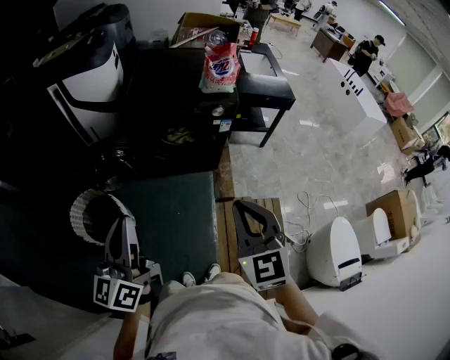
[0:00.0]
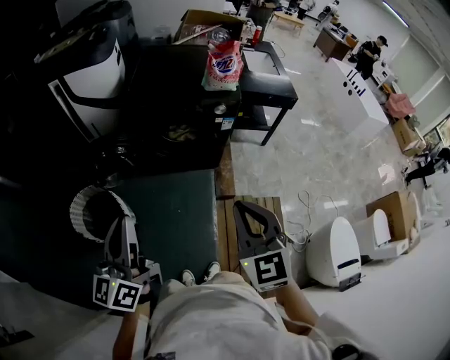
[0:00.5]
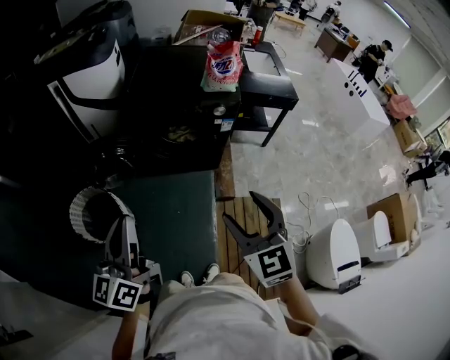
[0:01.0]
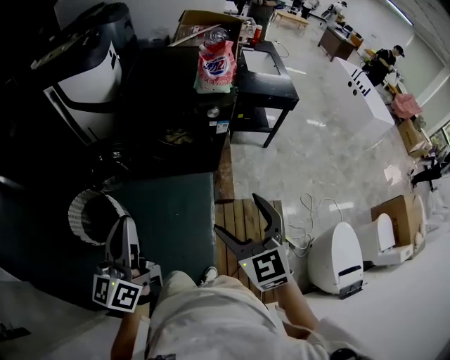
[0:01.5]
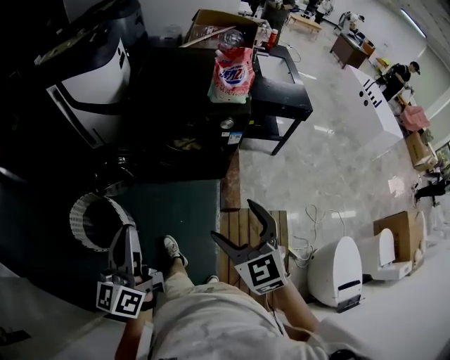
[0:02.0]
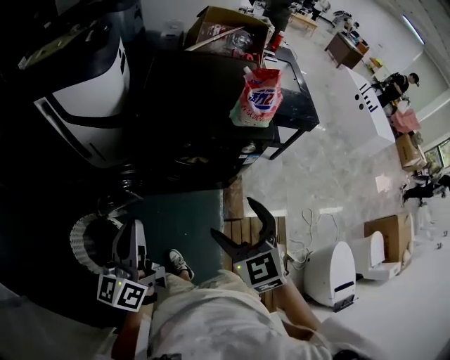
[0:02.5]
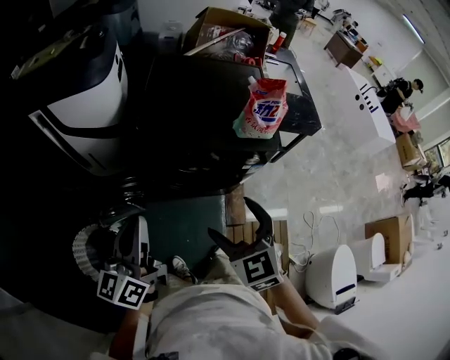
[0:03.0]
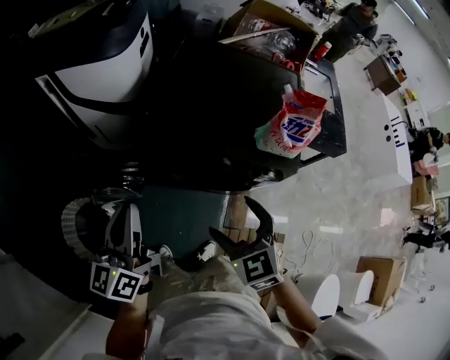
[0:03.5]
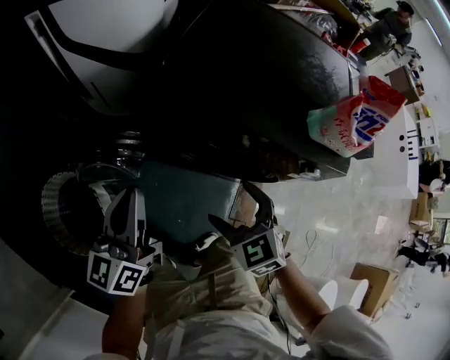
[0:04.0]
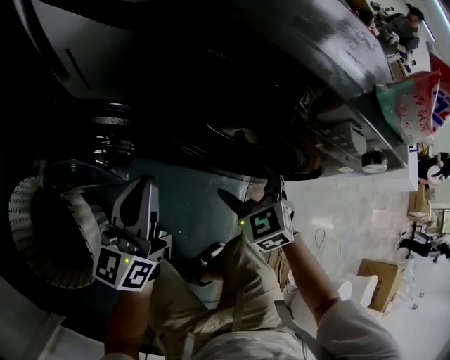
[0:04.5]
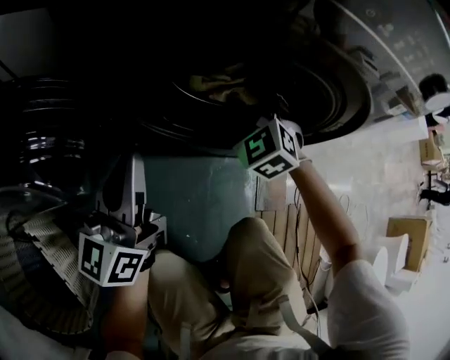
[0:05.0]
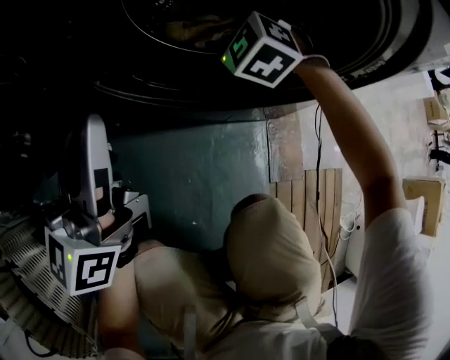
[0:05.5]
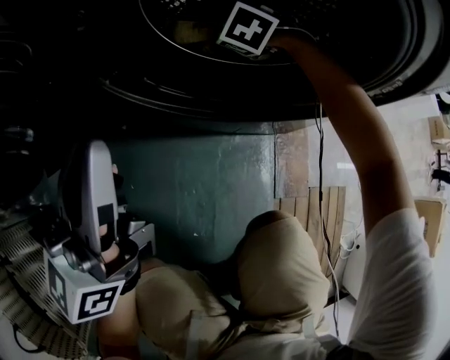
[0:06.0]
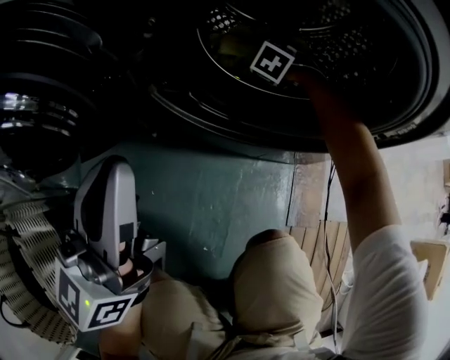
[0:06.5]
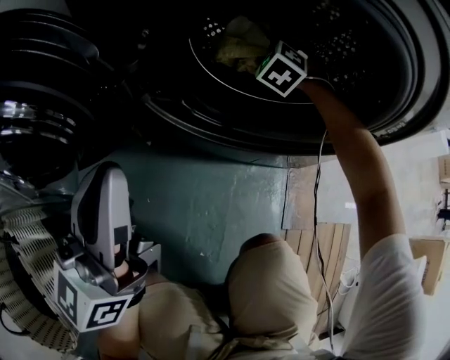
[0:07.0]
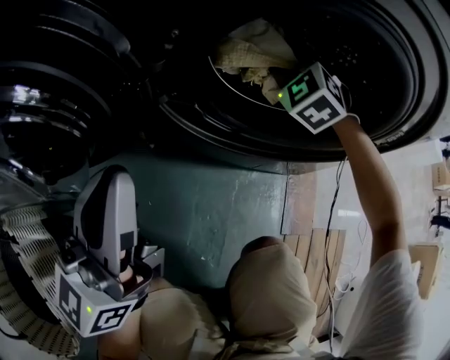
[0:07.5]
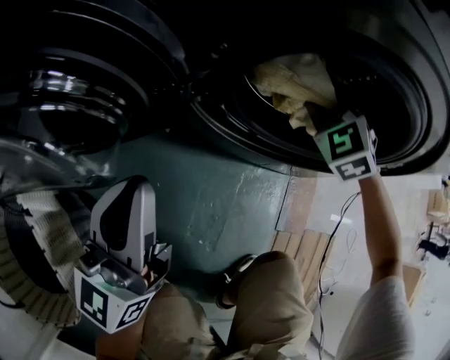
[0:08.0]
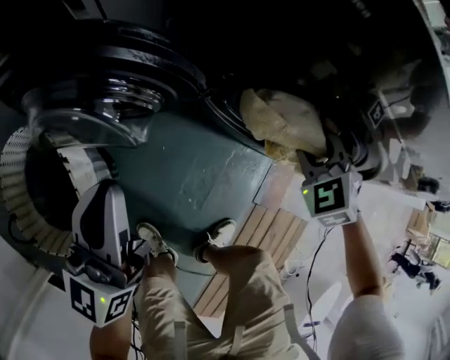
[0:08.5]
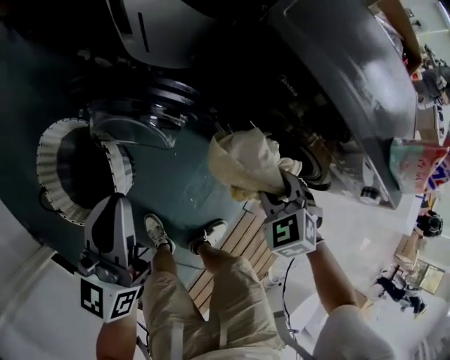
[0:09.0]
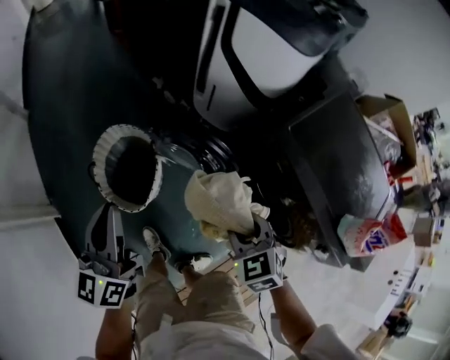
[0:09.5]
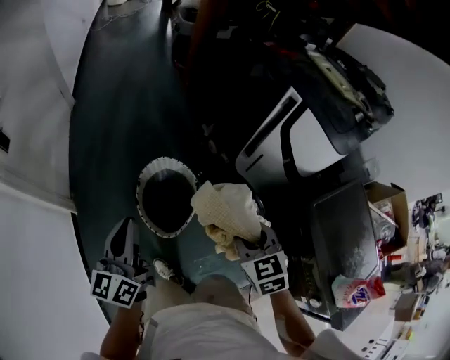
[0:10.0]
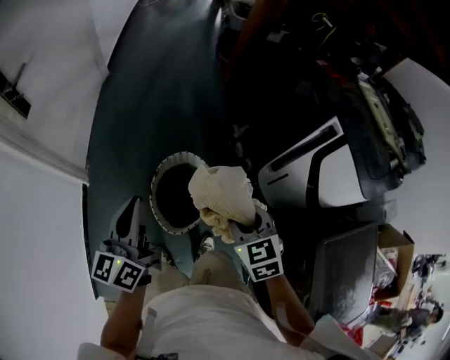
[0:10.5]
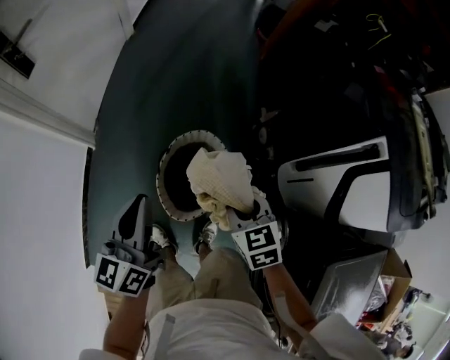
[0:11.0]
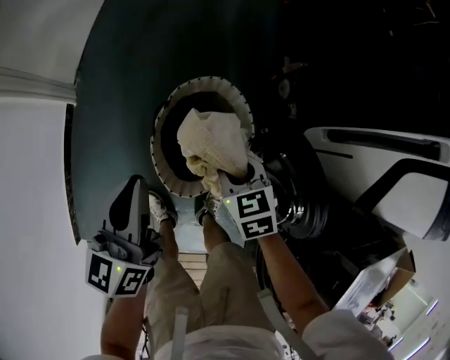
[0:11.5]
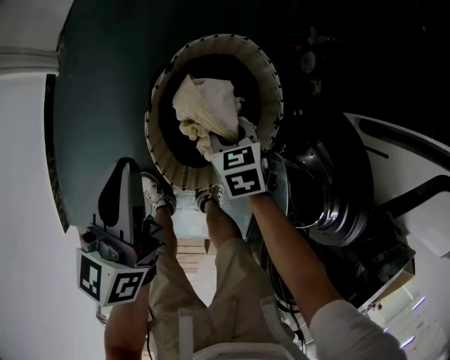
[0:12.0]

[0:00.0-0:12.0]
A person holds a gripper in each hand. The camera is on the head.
0:00.0 to 0:02.0: The left gripper moves forward, about 10 cm. The right gripper is displaced forward and downward by some 10 cm, and opens.
0:02.0 to 0:04.0: Both grippers move forward and downward, approximately 40 cm. The right gripper rotates about 30 degrees.
0:04.0 to 0:06.0: Both grippers travel together downward, roughly 40 cm. The left gripper swivels roughly 30 degrees, while the right gripper swivels about 30 degrees.
0:06.0 to 0:08.0: The right gripper goes roughly 15 cm upward and backward, rotates roughly 20 degrees, and closes its fingers; the left gripper is displaced to the left and backward by about 10 cm.
0:08.0 to 0:10.0: The two grippers travel together, some 50 cm. Both grippers move upward, approximately 50 cm. The left gripper rotates approximately 70 degrees; the right gripper turns by some 50 degrees.
0:10.0 to 0:12.0: The two grippers go about 50 cm downward. The right gripper rotates approximately 30 degrees. Meanwhile the left gripper rotates about 30 degrees.

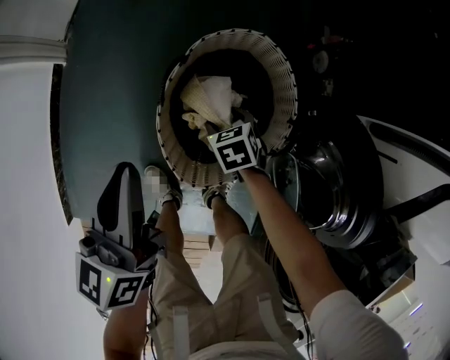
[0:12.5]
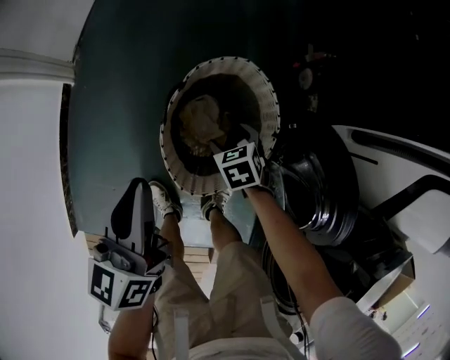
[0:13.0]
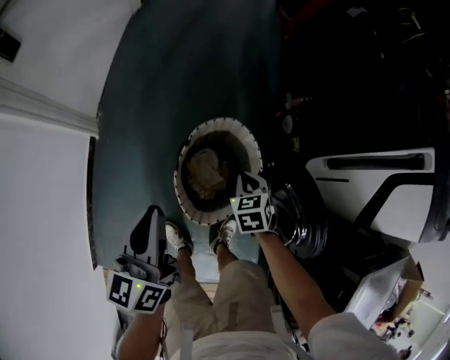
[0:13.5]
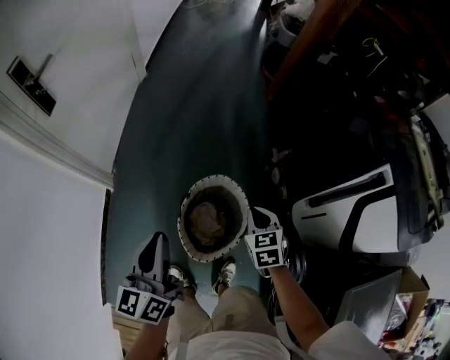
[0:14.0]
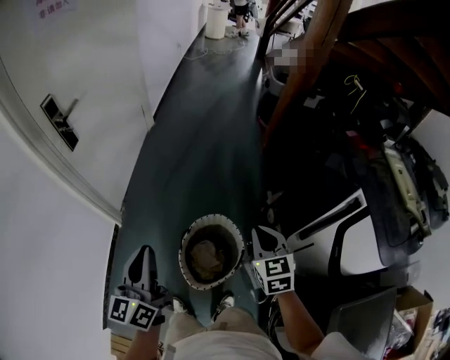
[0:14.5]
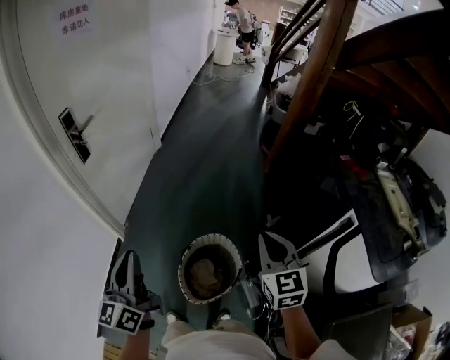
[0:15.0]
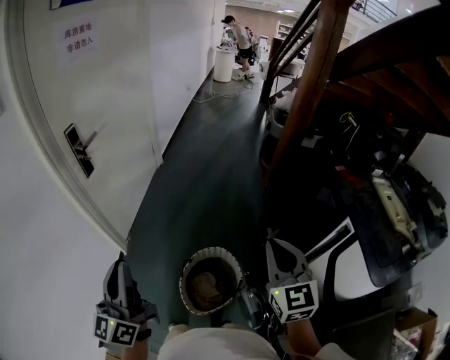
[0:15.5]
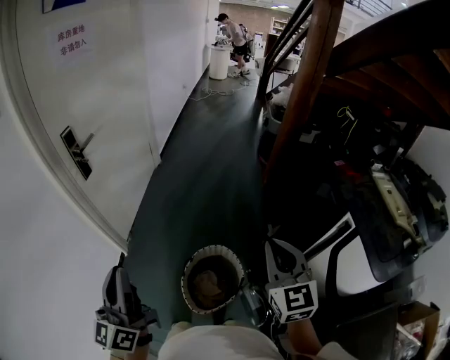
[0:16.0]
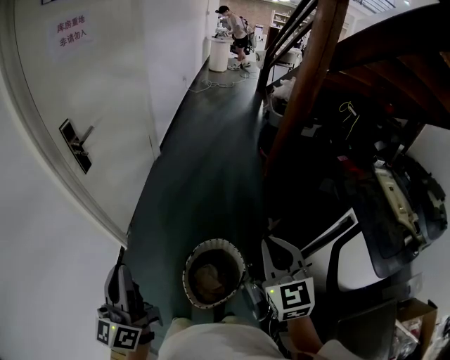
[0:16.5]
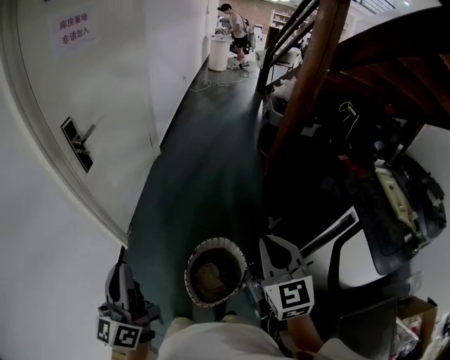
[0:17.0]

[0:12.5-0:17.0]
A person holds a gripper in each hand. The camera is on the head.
0:12.5 to 0:14.5: The grippers both shift upward by roughly 50 cm. The left gripper swivels some 20 degrees. Meanwhile the right gripper angles its fingers upward, by approximately 40 degrees, and closes up.
0:14.5 to 0:17.0: The left gripper is displaced upward, to the left and backward by about 15 cm. Meanwhile the right gripper heads upward, covering some 20 cm.

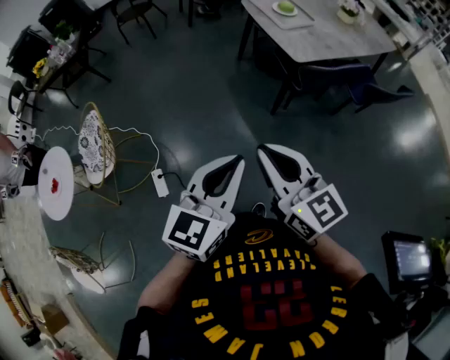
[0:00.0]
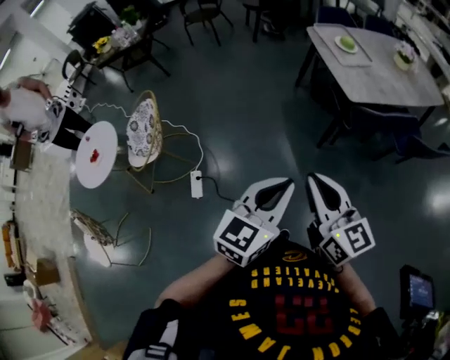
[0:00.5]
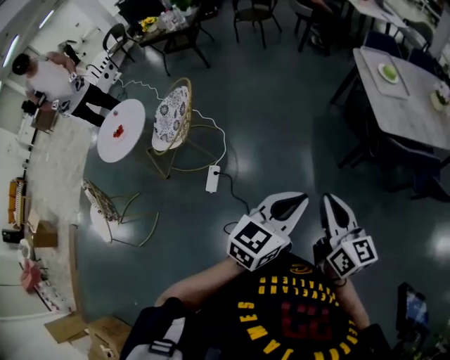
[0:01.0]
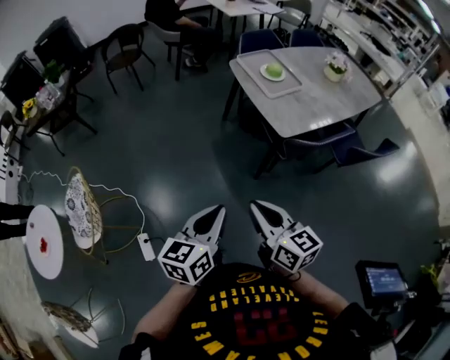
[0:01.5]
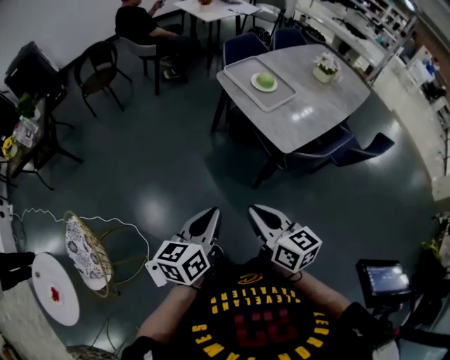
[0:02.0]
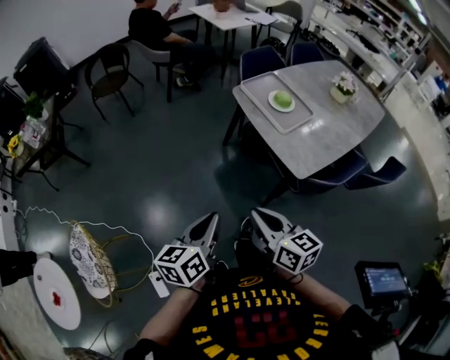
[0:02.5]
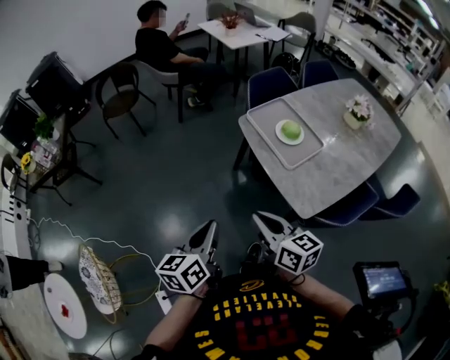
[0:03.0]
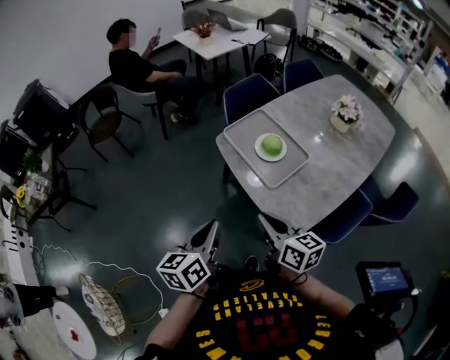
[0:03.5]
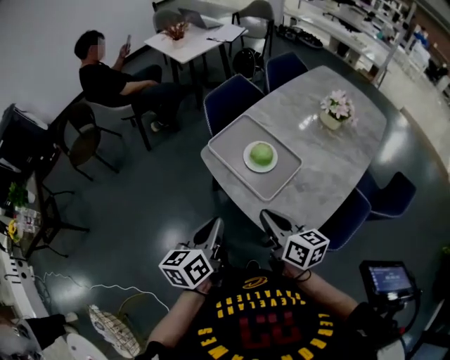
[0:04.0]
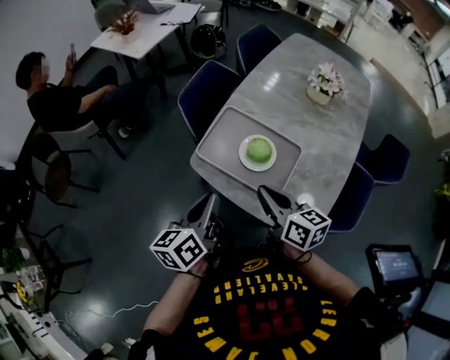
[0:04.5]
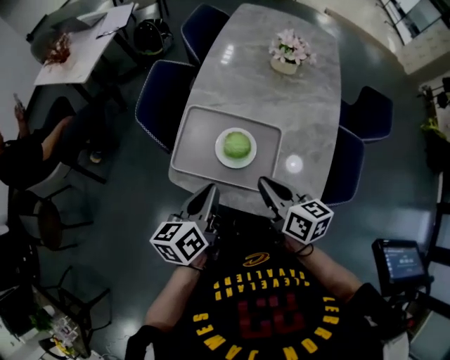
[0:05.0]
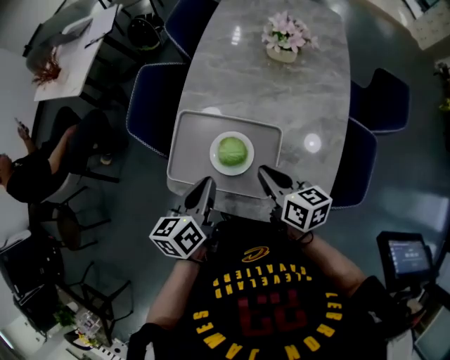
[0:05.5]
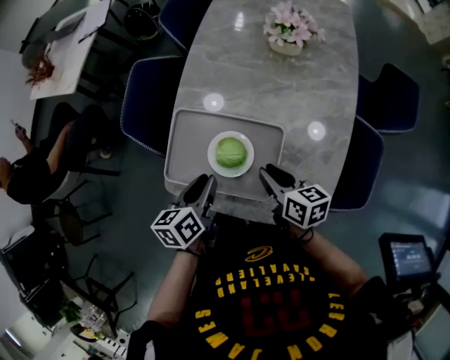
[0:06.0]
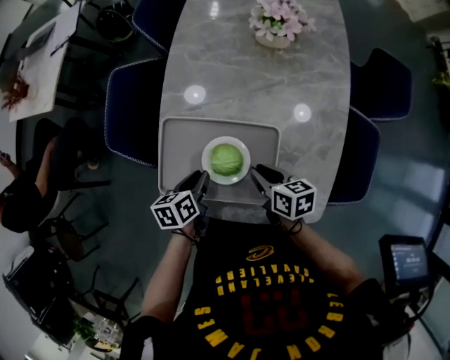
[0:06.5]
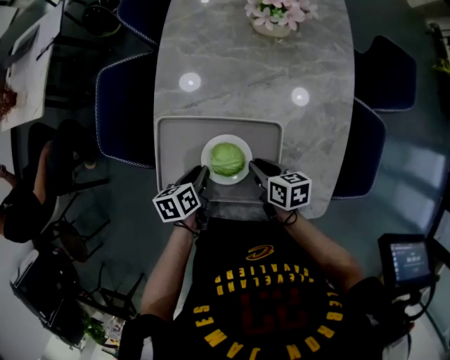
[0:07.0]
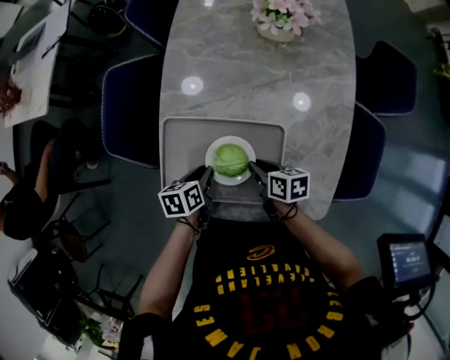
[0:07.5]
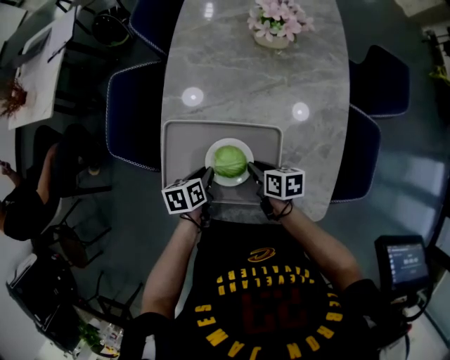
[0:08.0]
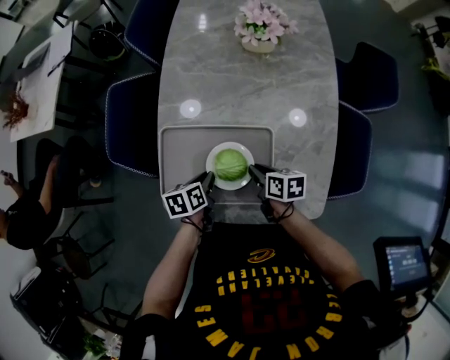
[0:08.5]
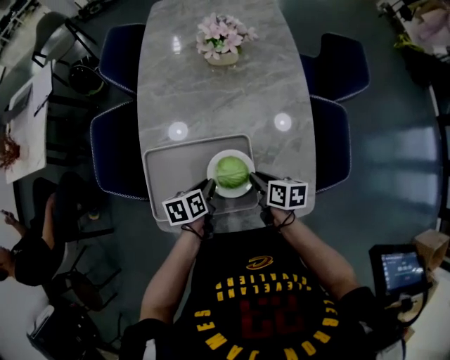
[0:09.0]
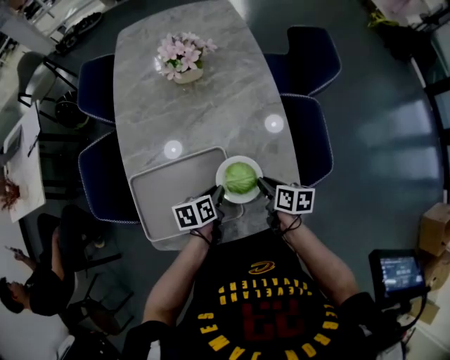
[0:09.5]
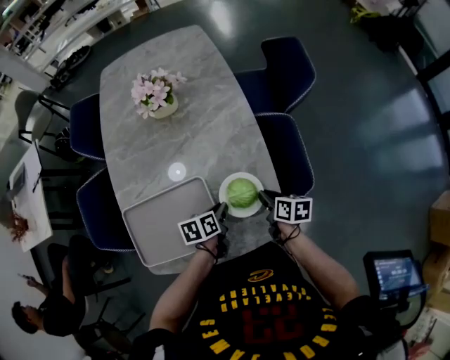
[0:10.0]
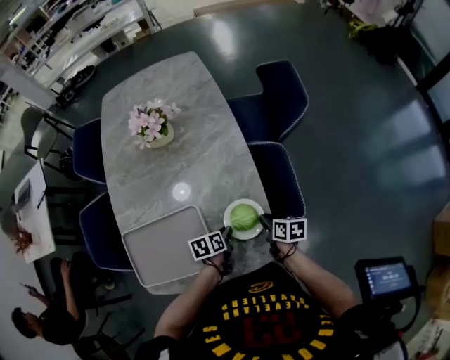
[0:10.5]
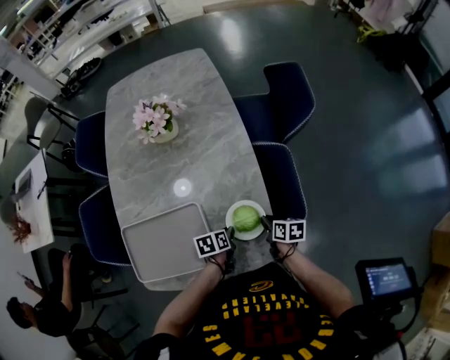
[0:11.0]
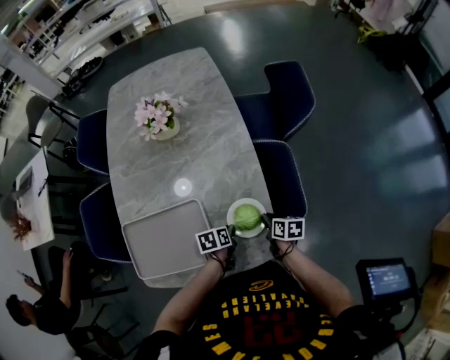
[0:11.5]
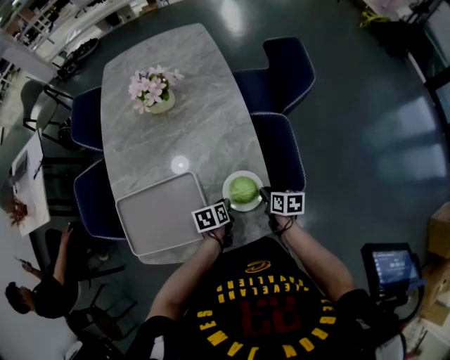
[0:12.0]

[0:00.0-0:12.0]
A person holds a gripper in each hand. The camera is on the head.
0:00.0 to 0:02.0: The two grippers go about 30 cm forward. The left gripper turns by some 30 degrees; the right gripper swivels roughly 20 degrees.
0:02.0 to 0:04.0: Both grippers are carried forward, some 50 cm.
0:04.0 to 0:06.0: The left gripper moves about 35 cm, turns by some 40 degrees, and opens its fingers, while the right gripper moves about 25 cm, and rotates roughly 30 degrees.
0:06.0 to 0:08.0: Both grippers travel together downward, roughly 15 cm. The right gripper changes its angle by approximately 20 degrees. The left gripper changes its angle by approximately 30 degrees.
0:08.0 to 0:10.0: The left gripper shifts by about 25 cm, and rotates roughly 20 degrees, while the right gripper ends up some 30 cm from where it was, and turns by approximately 30 degrees.
0:10.0 to 0:12.0: The right gripper travels downward and to the right by about 10 cm; the left gripper moves downward, roughly 5 cm.
